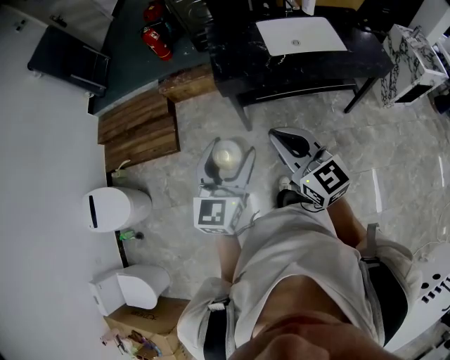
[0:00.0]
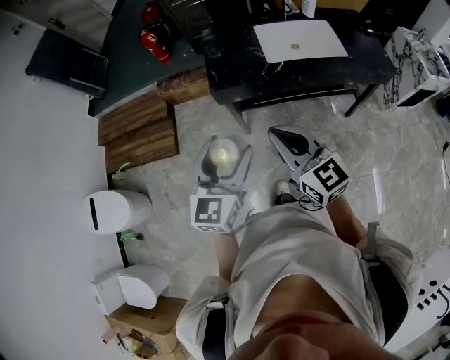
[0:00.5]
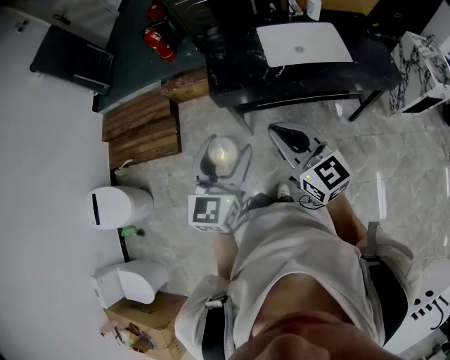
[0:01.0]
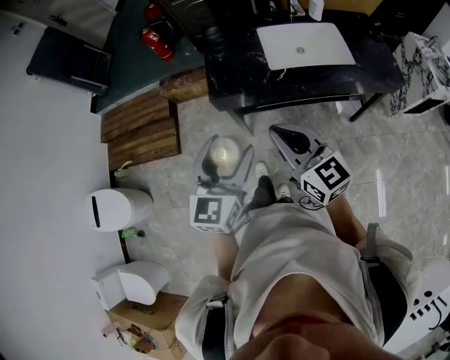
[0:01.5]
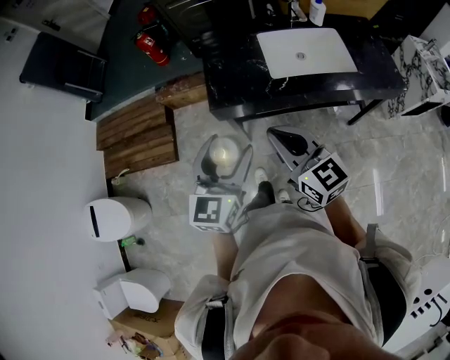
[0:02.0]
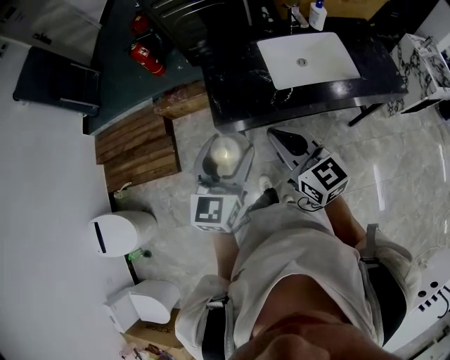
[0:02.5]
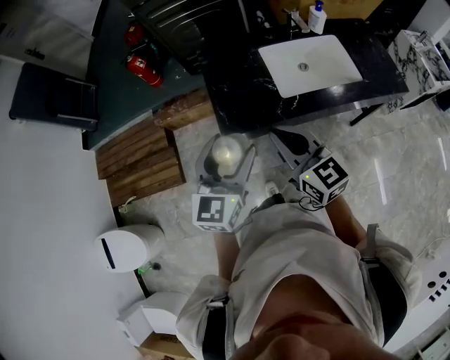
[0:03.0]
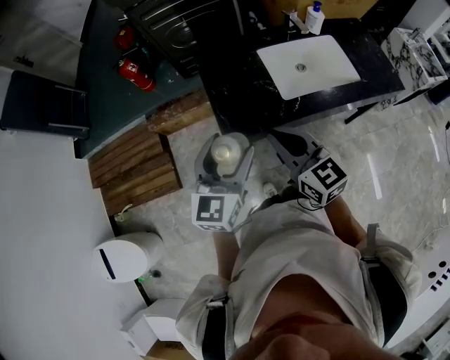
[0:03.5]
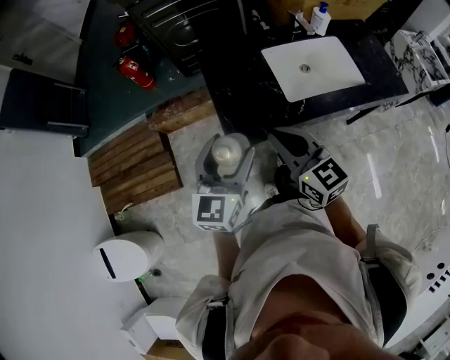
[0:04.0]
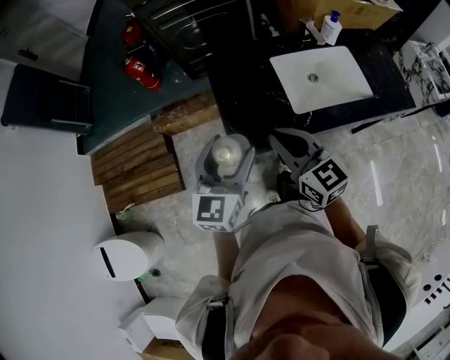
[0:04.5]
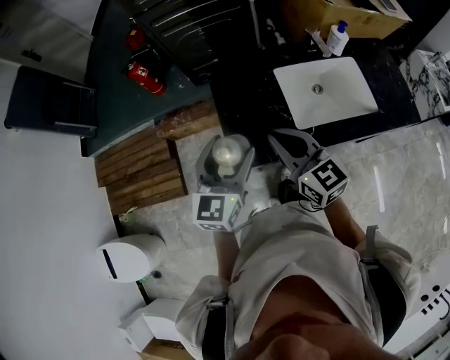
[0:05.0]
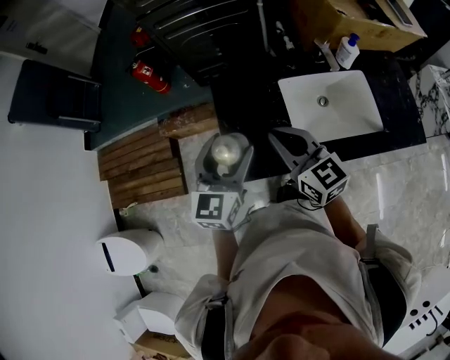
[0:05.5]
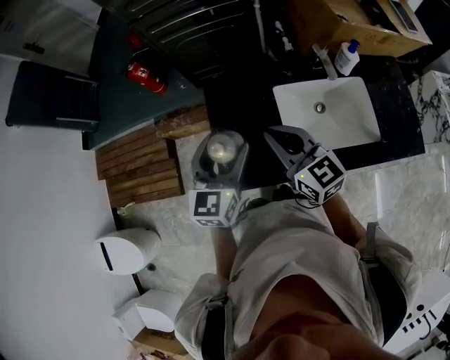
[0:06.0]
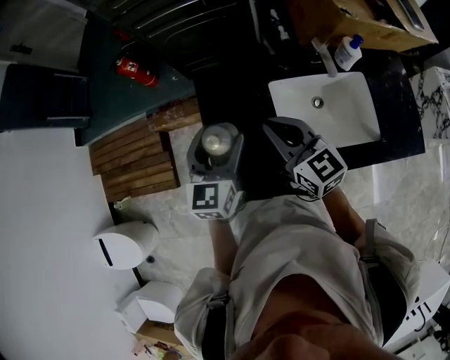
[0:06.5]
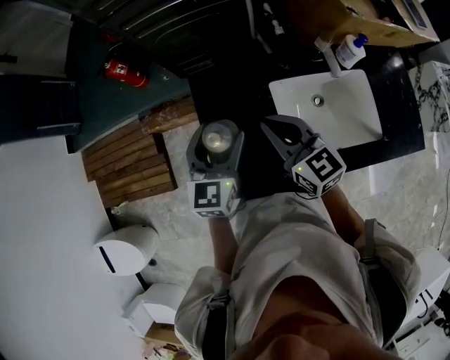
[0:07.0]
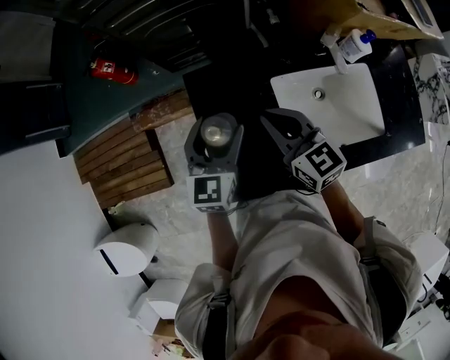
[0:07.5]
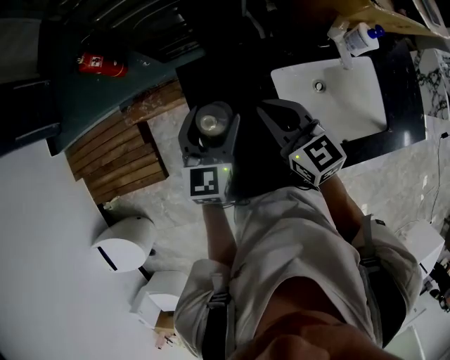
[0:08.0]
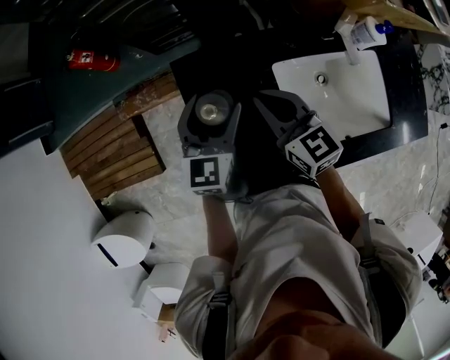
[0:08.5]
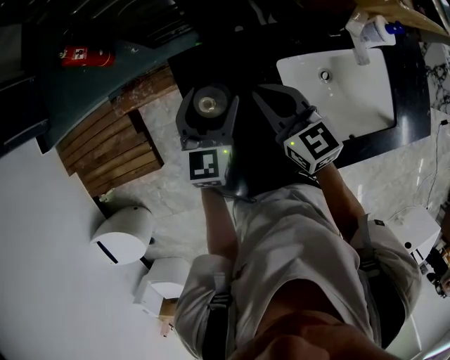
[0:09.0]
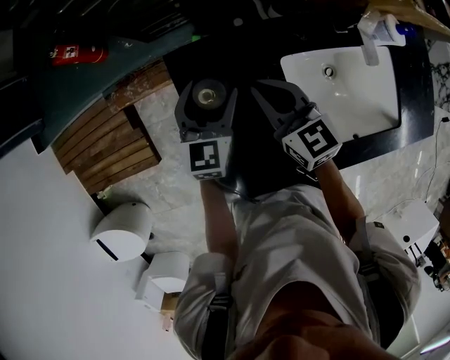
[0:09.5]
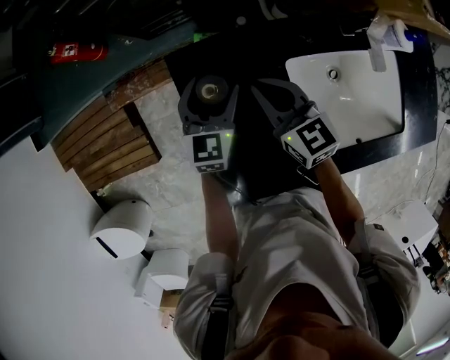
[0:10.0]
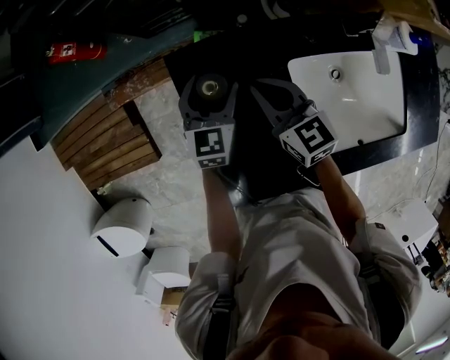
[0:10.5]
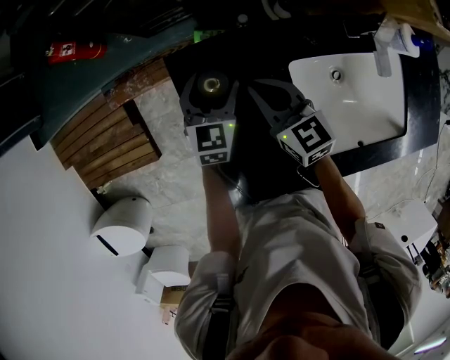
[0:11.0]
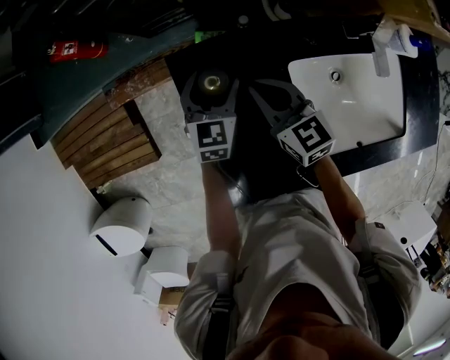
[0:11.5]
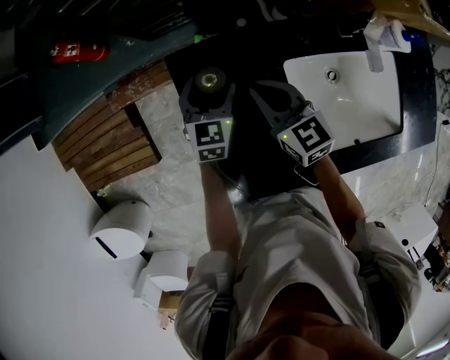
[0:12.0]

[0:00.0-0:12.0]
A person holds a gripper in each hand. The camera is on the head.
0:00.0 to 0:02.0: Both grippers move forward and to the right, some 15 cm.
0:02.0 to 0:04.0: The right gripper goes some 15 cm forward and to the left, while the left gripper shifts some 15 cm forward.
0:04.0 to 0:06.0: The two grippers go roughly 20 cm forward.
0:06.0 to 0:08.0: The grippers both shift forward and downward by roughly 15 cm.
0:08.0 to 0:10.0: The two grippers go roughly 15 cm downward and forward.
0:10.0 to 0:12.0: The grippers make only small movements.

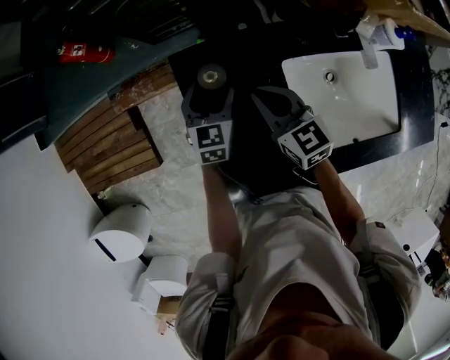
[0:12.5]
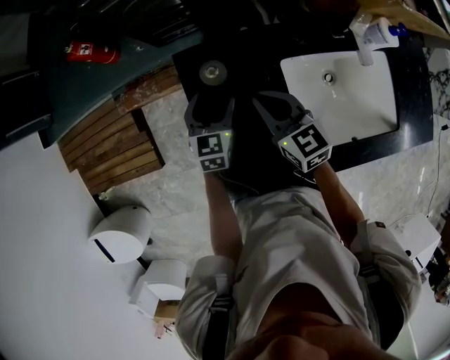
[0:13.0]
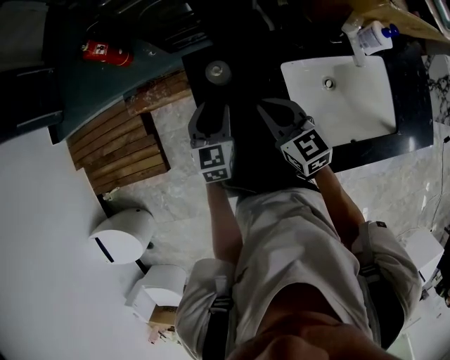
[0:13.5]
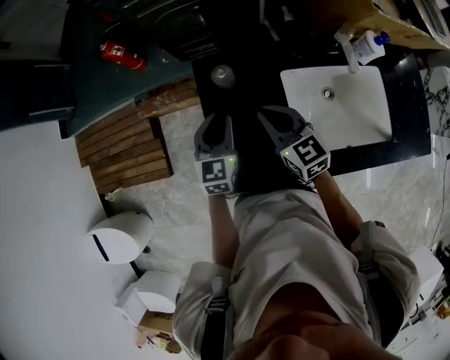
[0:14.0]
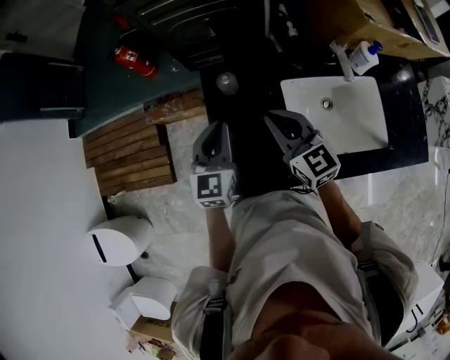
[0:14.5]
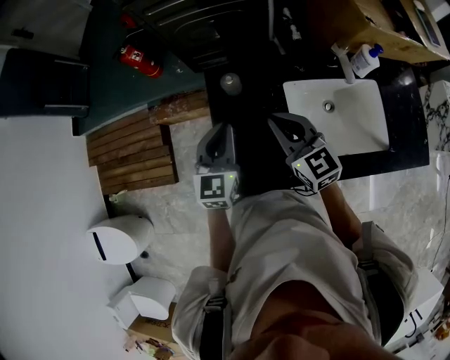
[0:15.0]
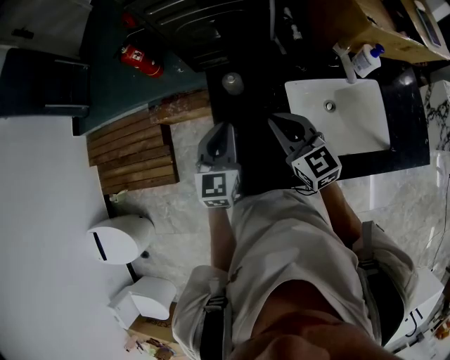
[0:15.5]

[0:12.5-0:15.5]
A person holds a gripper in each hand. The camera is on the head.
0:12.5 to 0:14.0: The right gripper heads backward and upward, covering about 10 cm. Meanwhile the left gripper travels upward and backward by about 15 cm, and closes up.
0:14.0 to 0:15.5: Both grippers move upward, some 5 cm.

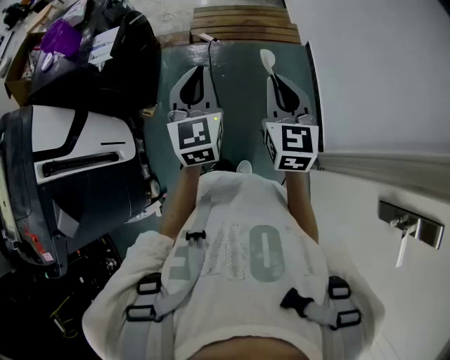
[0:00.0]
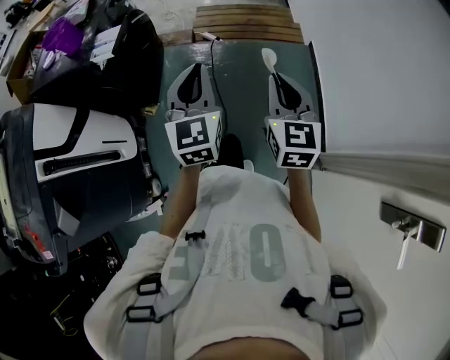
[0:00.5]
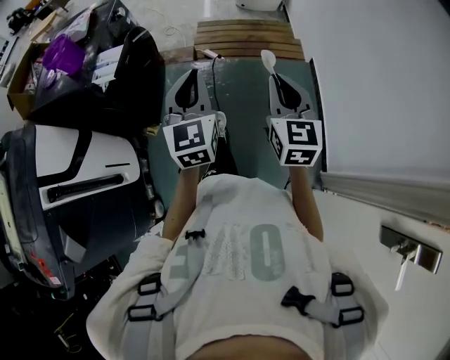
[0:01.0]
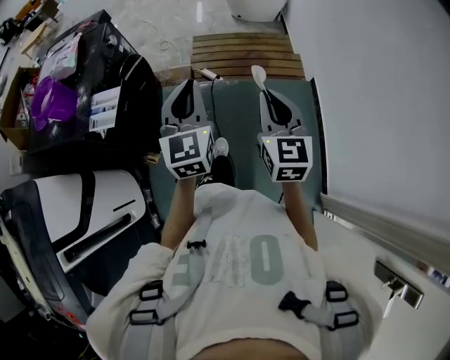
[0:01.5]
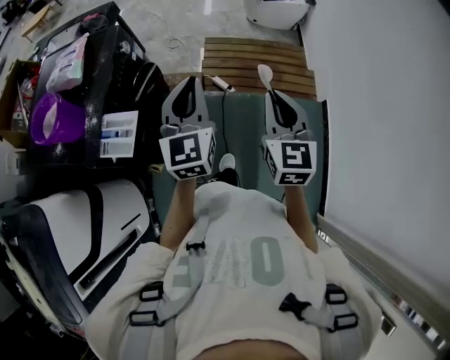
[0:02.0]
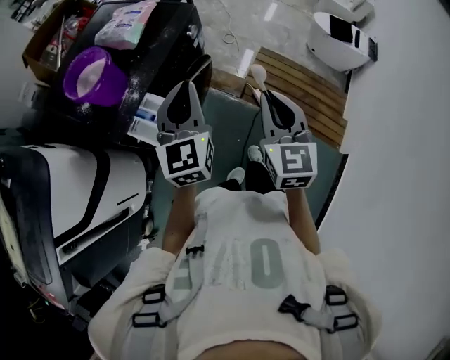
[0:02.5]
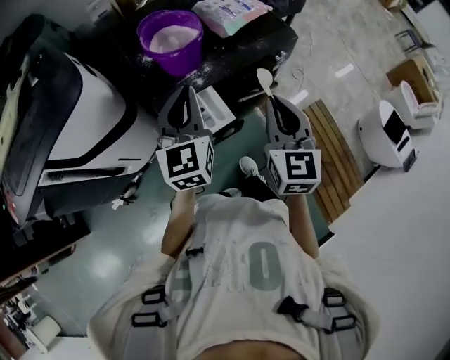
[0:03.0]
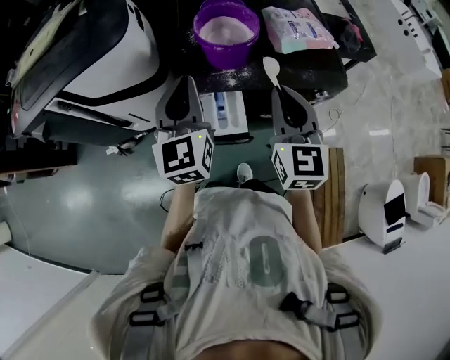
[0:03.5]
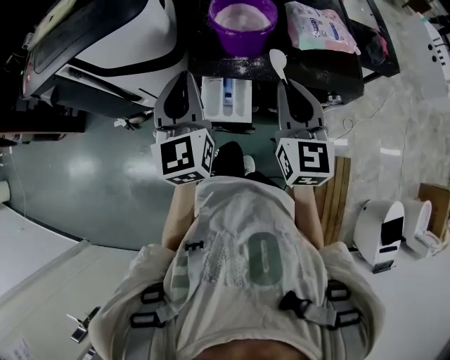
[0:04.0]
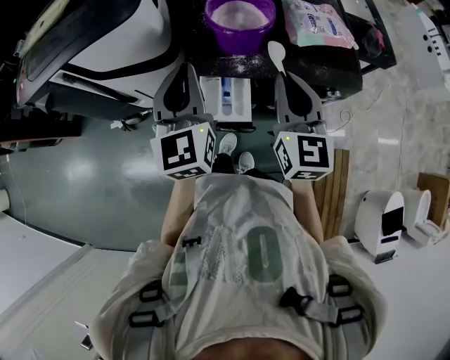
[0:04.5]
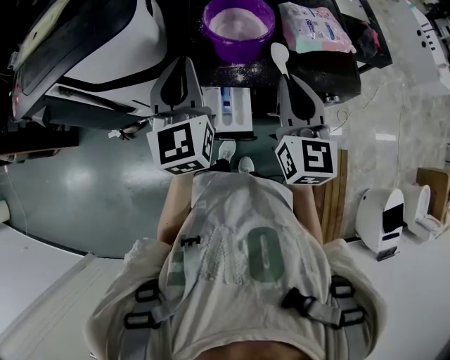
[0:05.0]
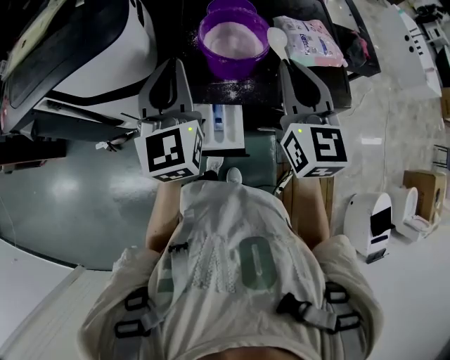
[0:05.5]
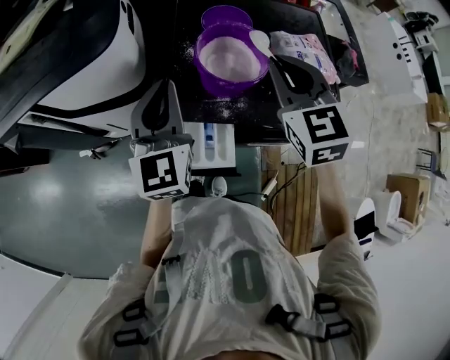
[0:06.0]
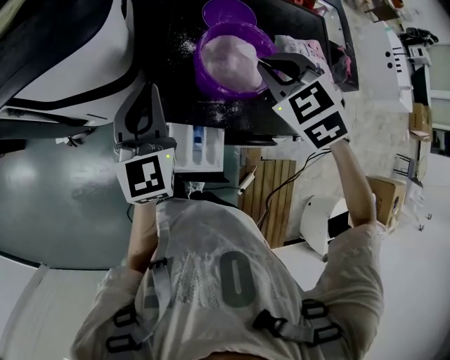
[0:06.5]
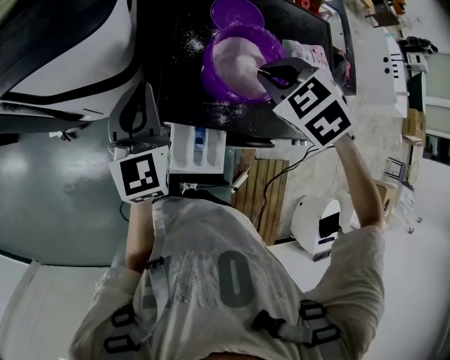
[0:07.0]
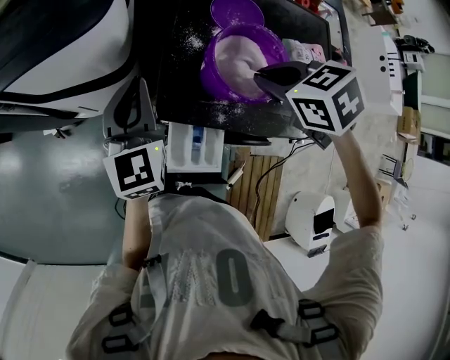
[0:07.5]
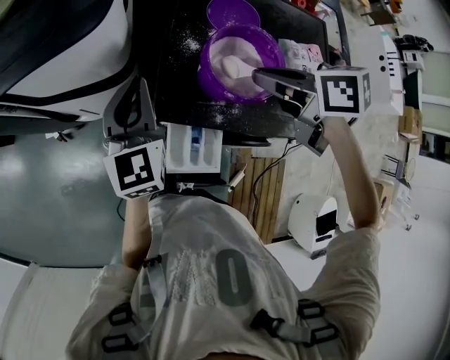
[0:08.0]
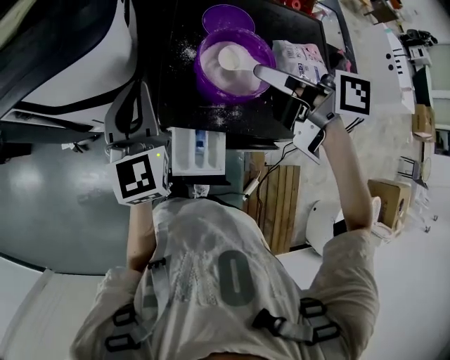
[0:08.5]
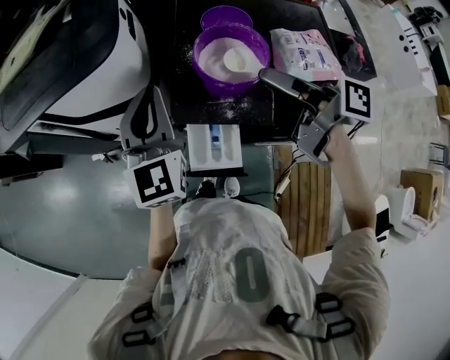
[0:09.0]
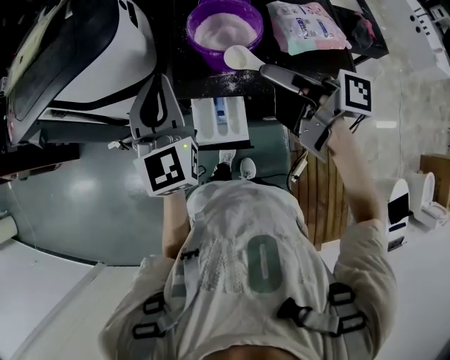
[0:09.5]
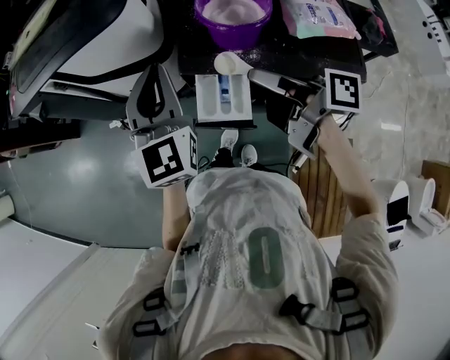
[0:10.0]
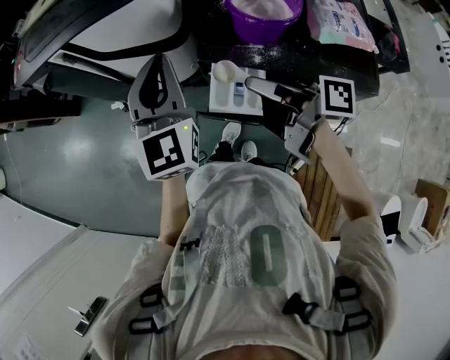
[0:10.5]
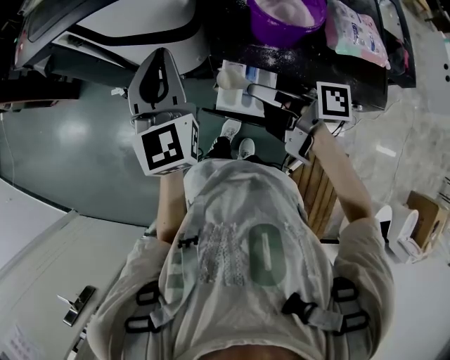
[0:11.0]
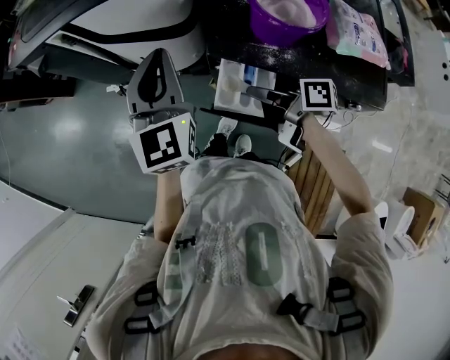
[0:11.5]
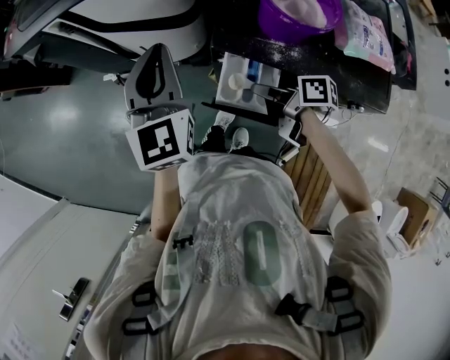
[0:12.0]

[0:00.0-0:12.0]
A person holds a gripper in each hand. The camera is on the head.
0:00.0 to 0:02.0: The pair of grippers is taken forward, about 50 cm.
0:02.0 to 0:04.0: The left gripper changes place by approximately 35 cm, and turns by some 90 degrees; the right gripper shifts by approximately 50 cm, and swivels roughly 90 degrees.
0:04.0 to 0:06.0: Both grippers travel together forward, approximately 15 cm. The right gripper rotates roughly 30 degrees.
0:06.0 to 0:08.0: The right gripper is displaced downward by approximately 5 cm, and swivels about 60 degrees; the left gripper changes place by some 10 cm.
0:08.0 to 0:10.0: The left gripper travels backward and upward by some 15 cm. Meanwhile the right gripper moves backward and to the left, some 15 cm, and points its fingers approximately 40 degrees further upward.
0:10.0 to 0:12.0: The right gripper moves downward, roughly 20 cm, and turns by approximately 30 degrees. The left gripper is displaced to the left and forward by some 10 cm.
